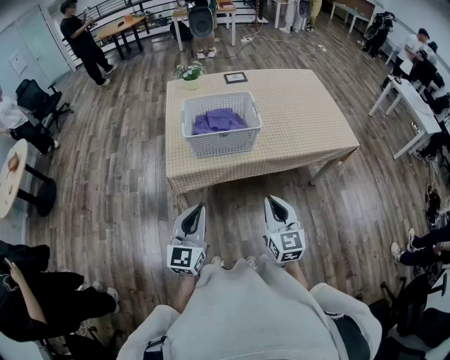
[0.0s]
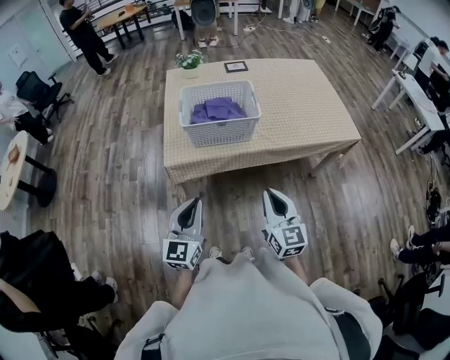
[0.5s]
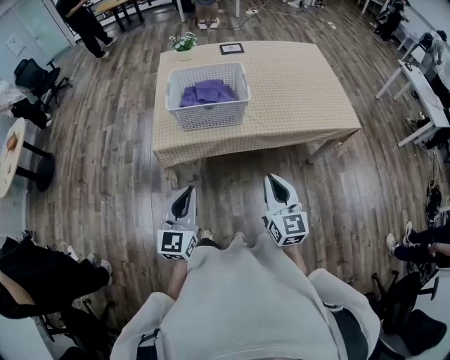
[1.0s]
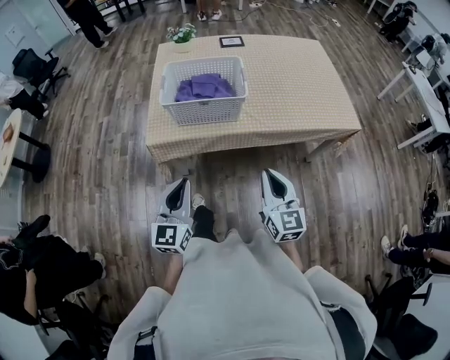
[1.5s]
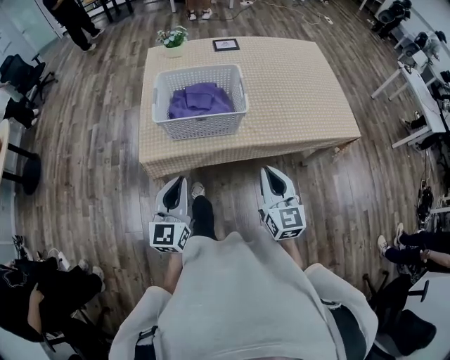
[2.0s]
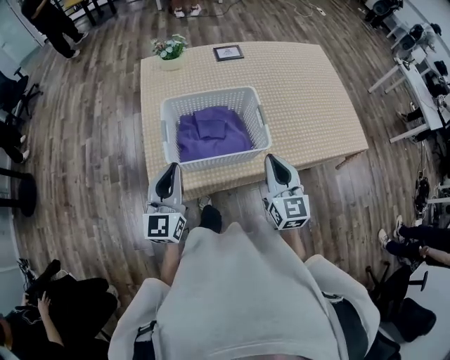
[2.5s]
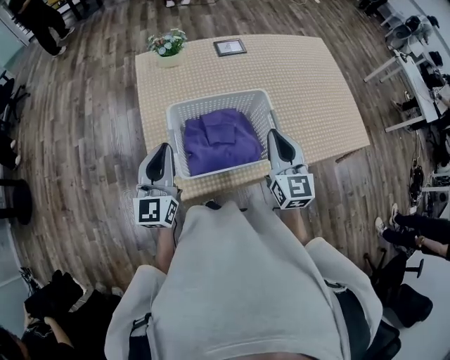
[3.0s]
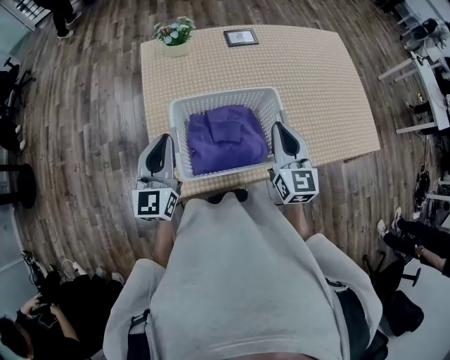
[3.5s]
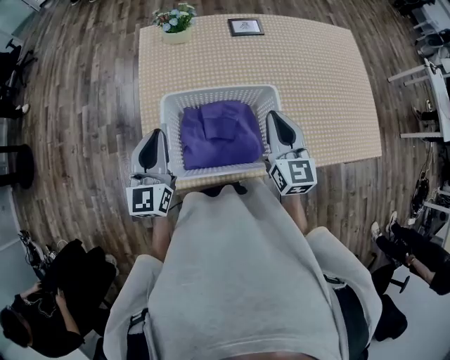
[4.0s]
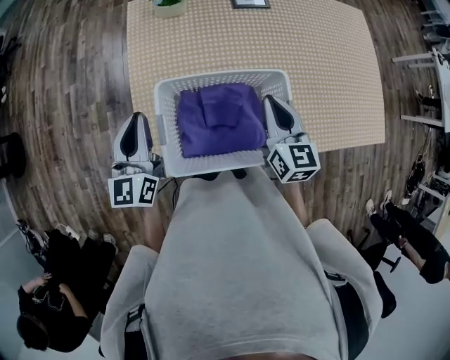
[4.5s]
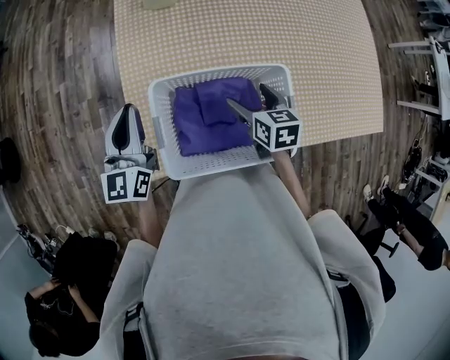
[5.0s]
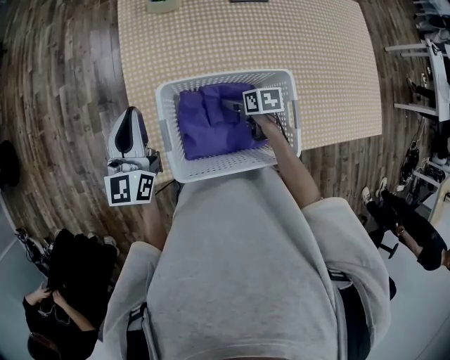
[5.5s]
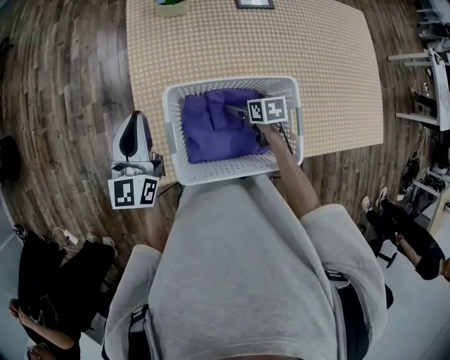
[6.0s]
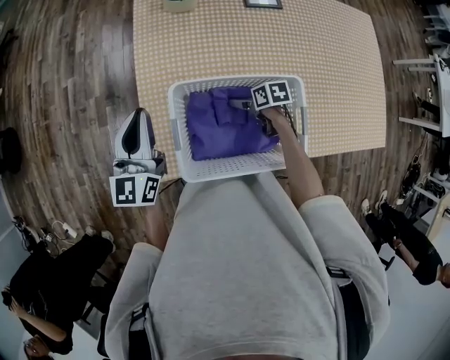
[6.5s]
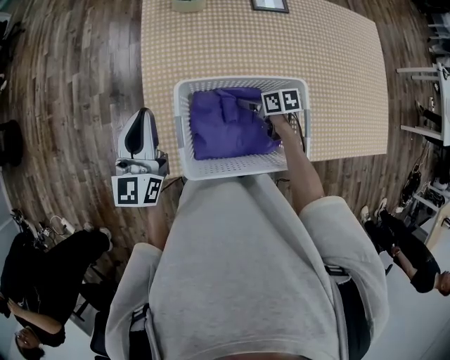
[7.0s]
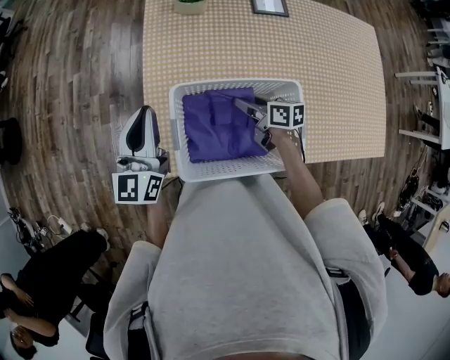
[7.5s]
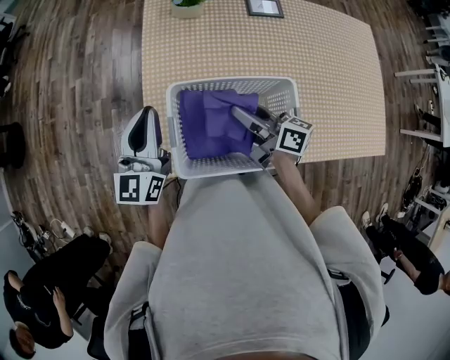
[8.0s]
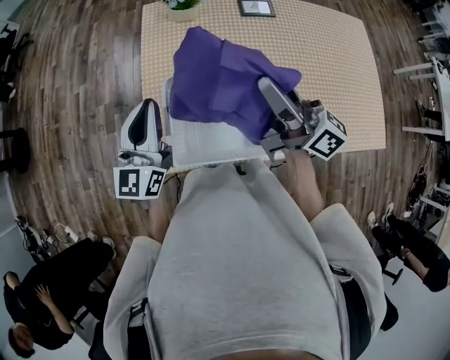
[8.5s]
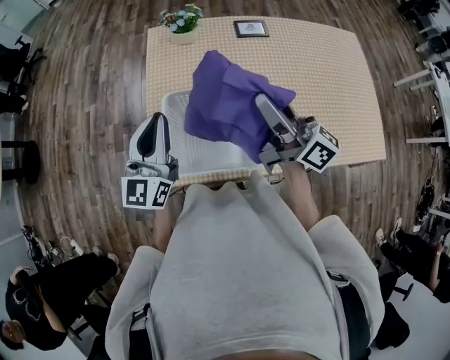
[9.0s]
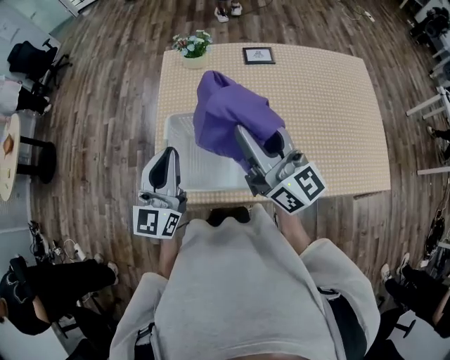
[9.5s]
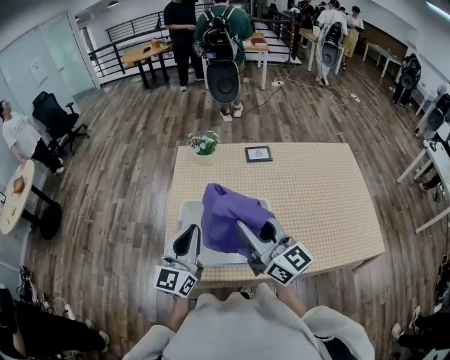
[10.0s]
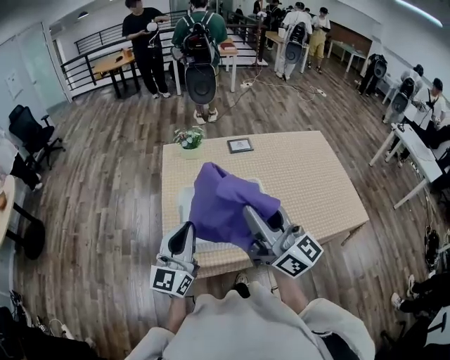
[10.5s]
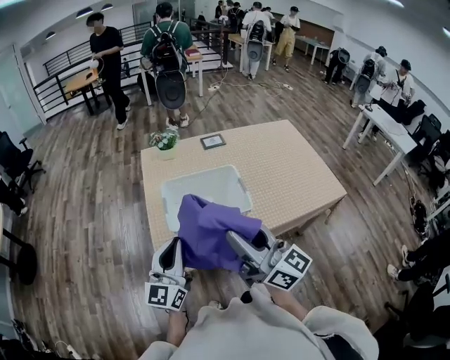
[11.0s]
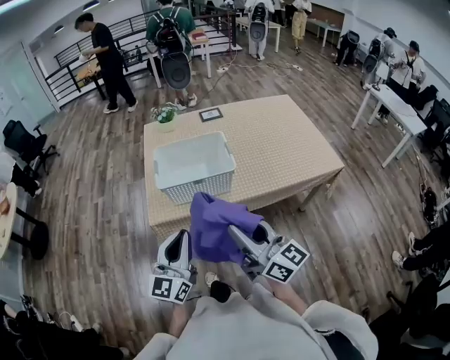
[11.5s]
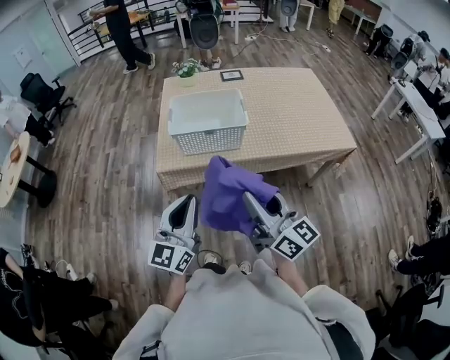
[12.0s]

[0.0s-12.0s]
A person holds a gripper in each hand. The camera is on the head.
0.0s to 2.0s: The left gripper heads forward, covering about 10 cm. The right gripper is displaced forward and to the right by some 15 cm.
2.0s to 4.0s: The right gripper travels forward by some 35 cm; the left gripper goes about 35 cm forward and to the left.
4.0s to 6.0s: The left gripper shifts about 10 cm forward and to the left. Meanwhile the right gripper is displaced downward by approximately 25 cm, tilts its fingers roughly 50 degrees downward, and opens.
6.0s to 8.0s: The right gripper heads upward, covering some 20 cm, angles its fingers upward, by about 50 degrees, and closes its fingers.
8.0s to 10.0s: The left gripper travels backward, to the right and upward by approximately 20 cm. The right gripper goes roughly 25 cm upward and backward, and swivels roughly 40 degrees.
10.0s to 12.0s: The pair of grippers is taken backward, approximately 40 cm.

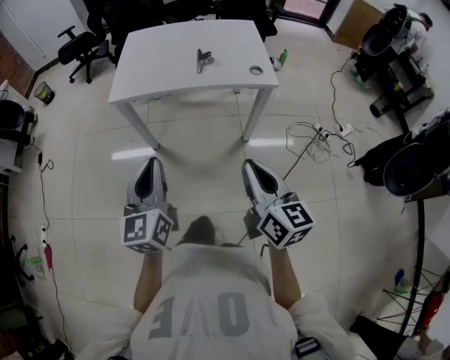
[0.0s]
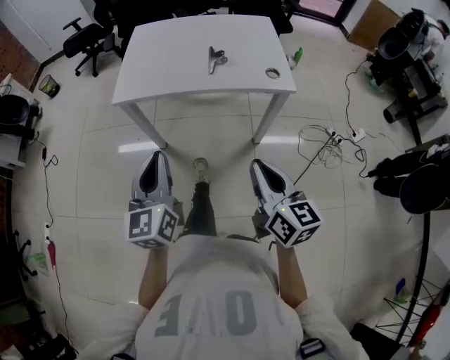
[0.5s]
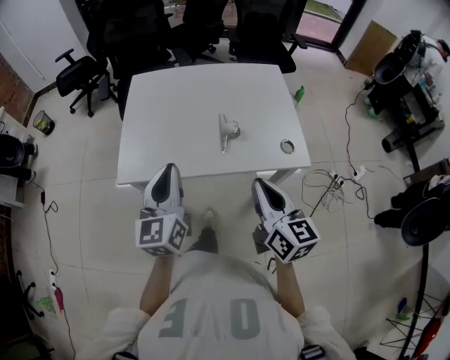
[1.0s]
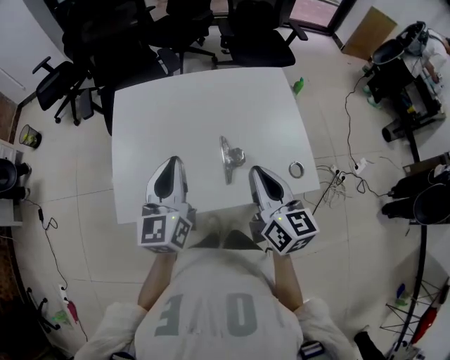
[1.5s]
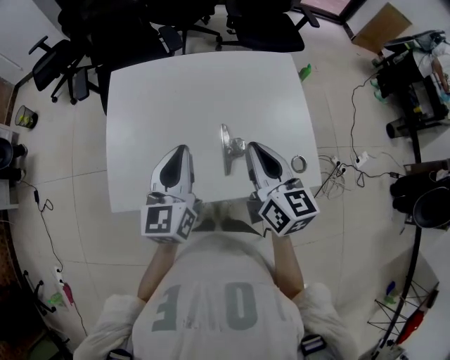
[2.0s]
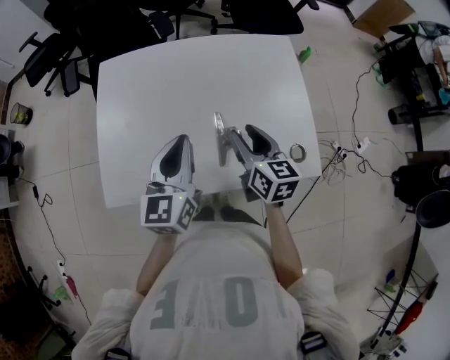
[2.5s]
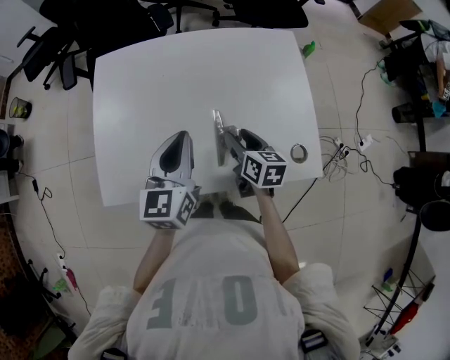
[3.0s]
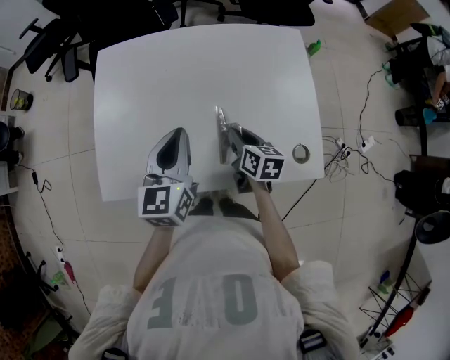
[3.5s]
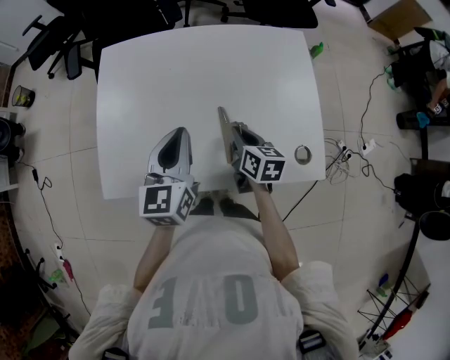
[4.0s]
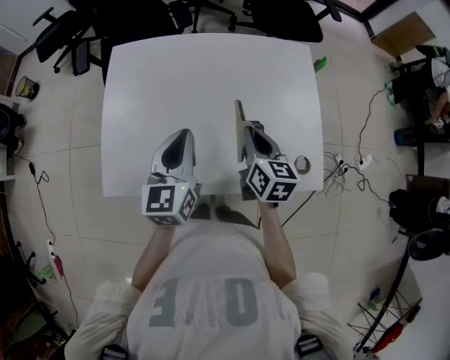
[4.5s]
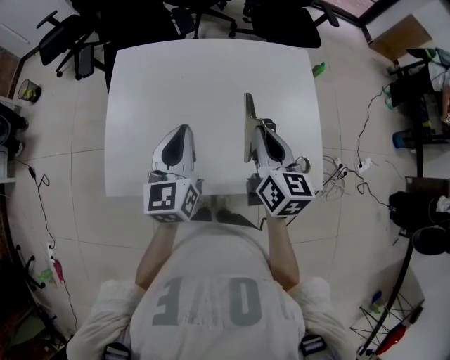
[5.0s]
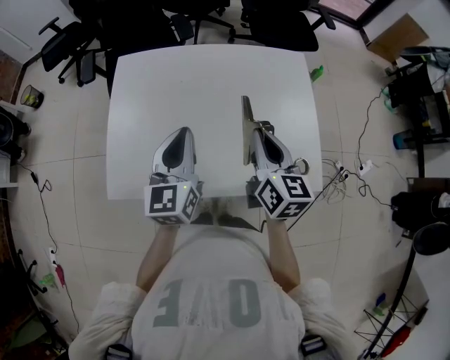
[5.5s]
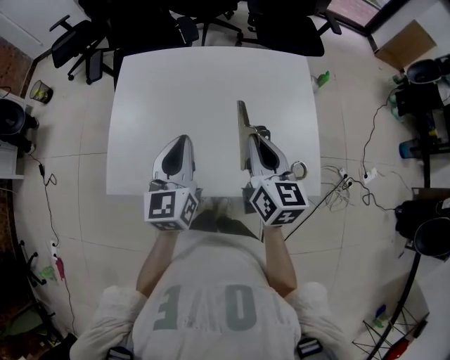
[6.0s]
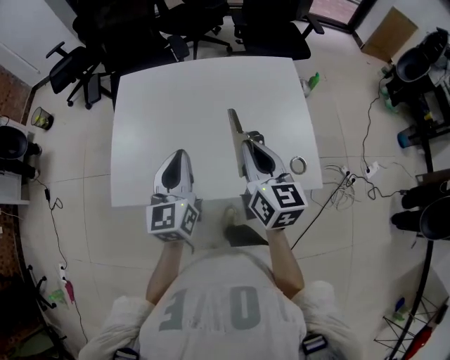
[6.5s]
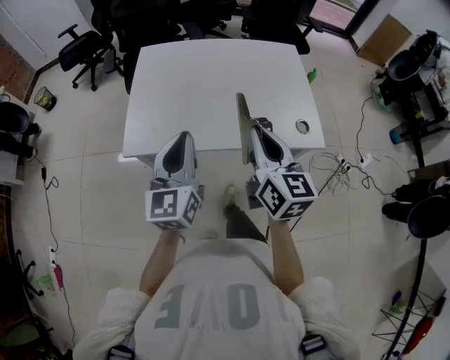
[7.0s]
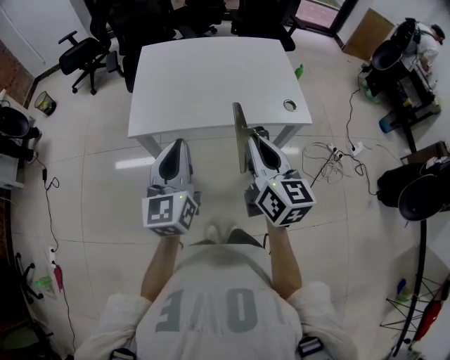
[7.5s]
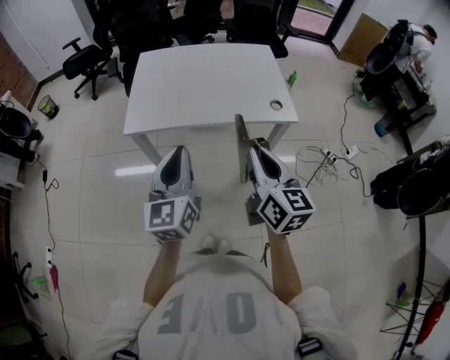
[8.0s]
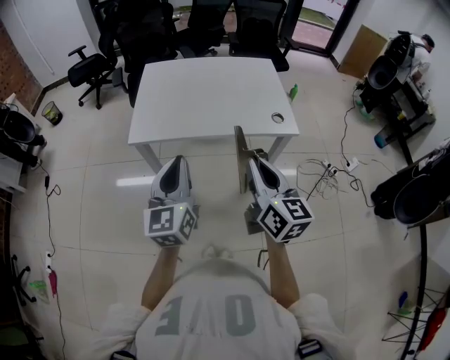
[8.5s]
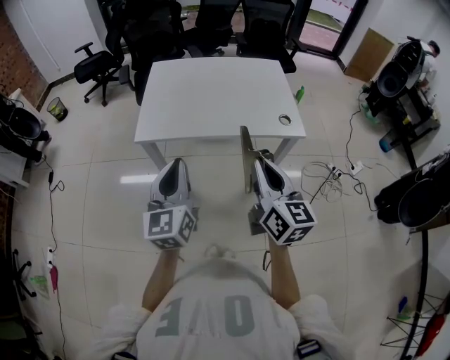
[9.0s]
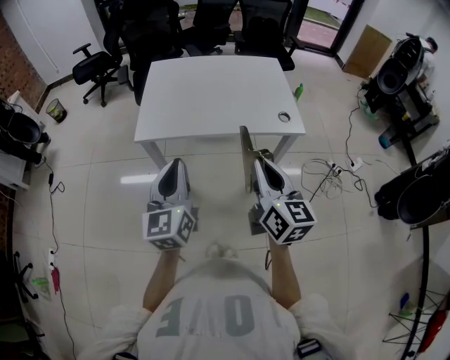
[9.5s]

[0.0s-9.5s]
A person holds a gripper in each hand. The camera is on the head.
0.0s to 2.0s: The pair of grippers is taken forward, about 50 cm.
2.0s to 4.0s: The left gripper moves downward, approximately 5 cm. Meanwhile the right gripper travels downward by approximately 20 cm, changes its angle by some 30 degrees, and opens, then closes again.
4.0s to 5.5s: The right gripper goes roughly 20 cm upward, and turns by roughly 20 degrees.
5.5s to 7.5s: Both grippers move backward, about 35 cm.
7.5s to 9.5s: The grippers both shift backward by some 10 cm.

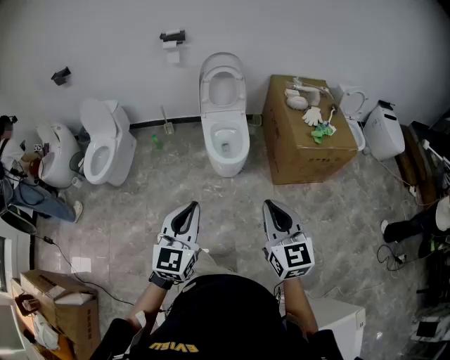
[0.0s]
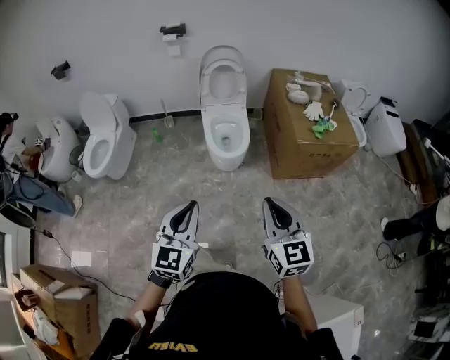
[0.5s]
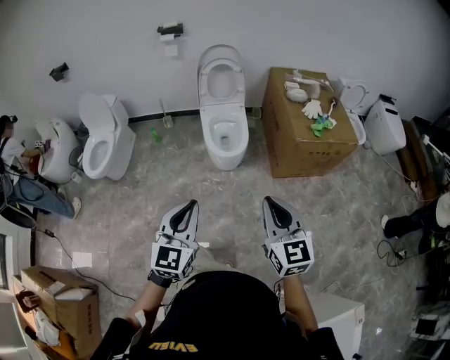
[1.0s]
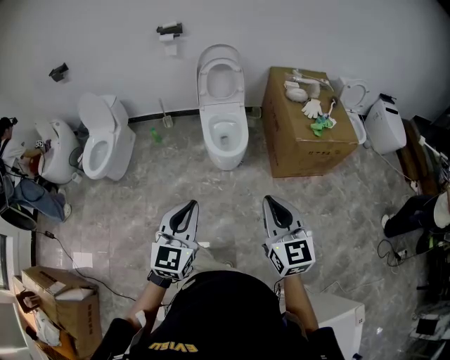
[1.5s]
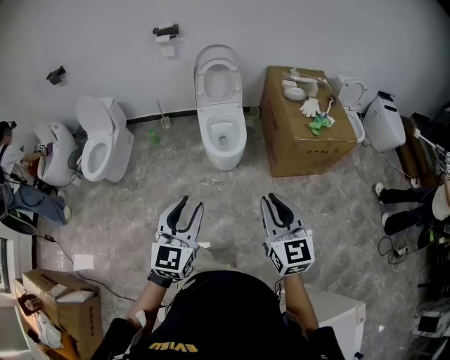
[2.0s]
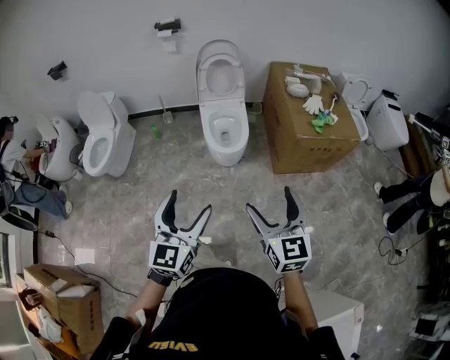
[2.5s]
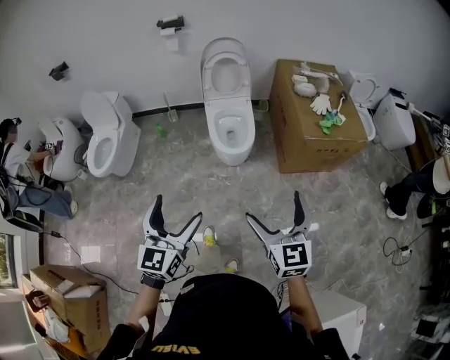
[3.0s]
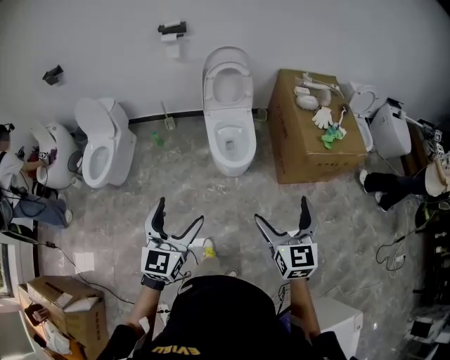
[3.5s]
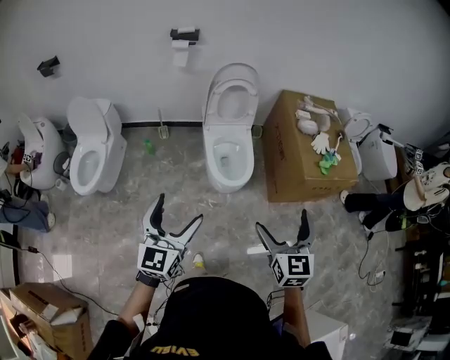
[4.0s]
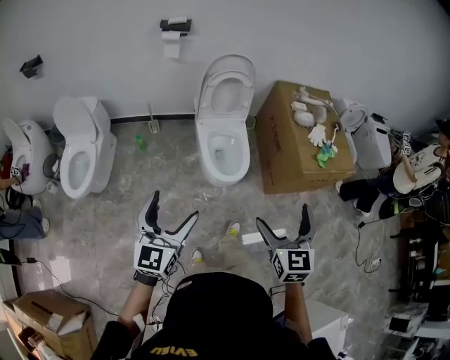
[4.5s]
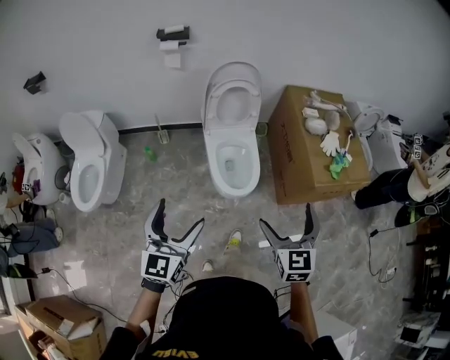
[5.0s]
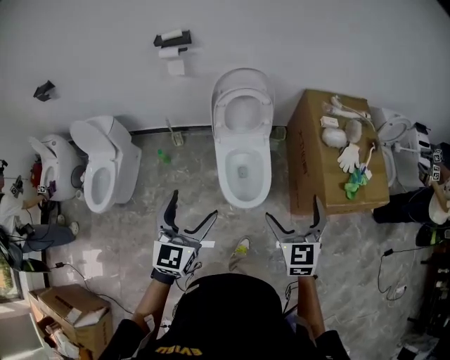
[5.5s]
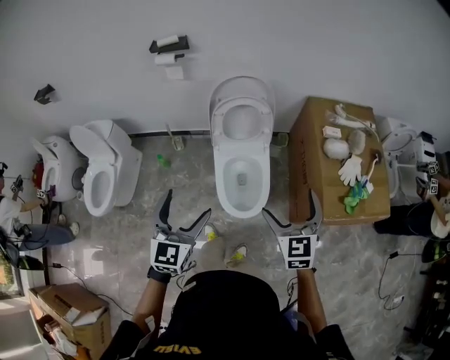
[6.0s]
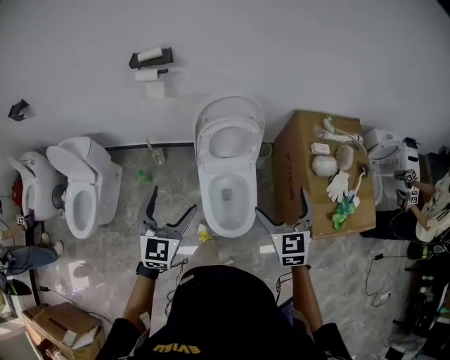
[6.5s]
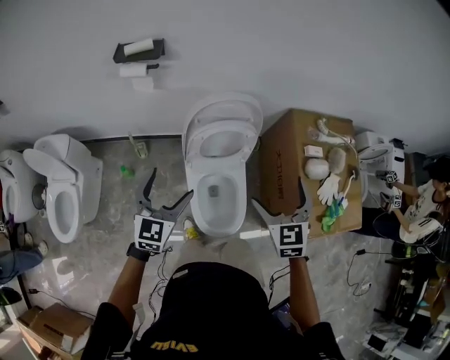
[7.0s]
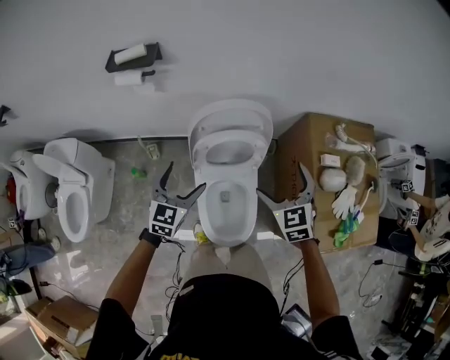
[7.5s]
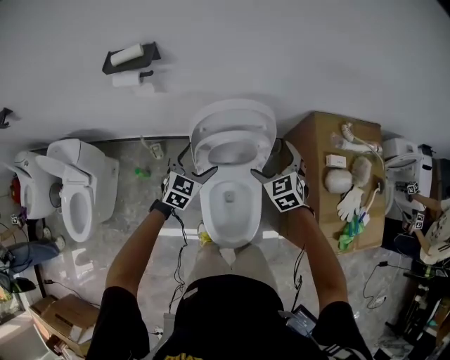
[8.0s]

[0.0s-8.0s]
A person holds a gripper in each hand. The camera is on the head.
0.0s to 2.0s: The grippers move only a little.
2.0s to 4.0s: The grippers both shift forward and to the left by approximately 25 cm. The right gripper opens up; the left gripper opens.
4.0s to 6.0s: The two grippers go about 35 cm forward.
6.0s to 8.0s: The grippers both shift forward and downward by about 40 cm. The right gripper swivels approximately 20 degrees. The left gripper turns by roughly 20 degrees.
